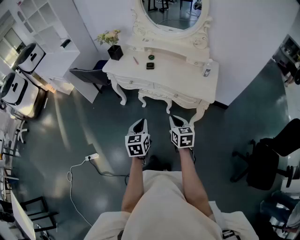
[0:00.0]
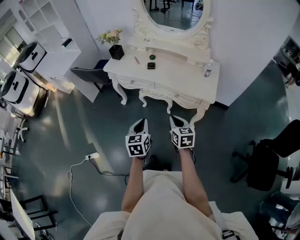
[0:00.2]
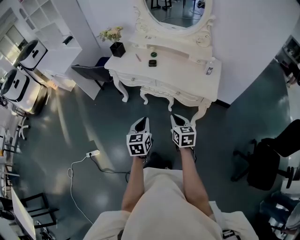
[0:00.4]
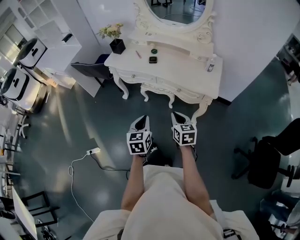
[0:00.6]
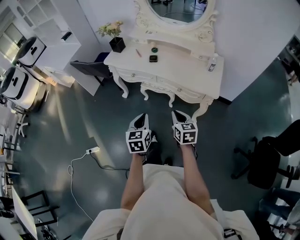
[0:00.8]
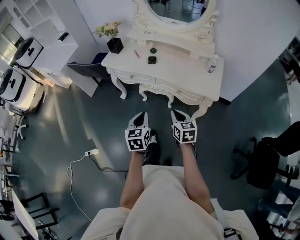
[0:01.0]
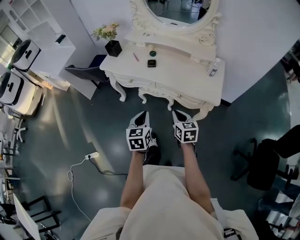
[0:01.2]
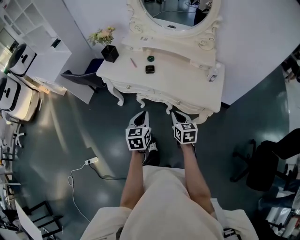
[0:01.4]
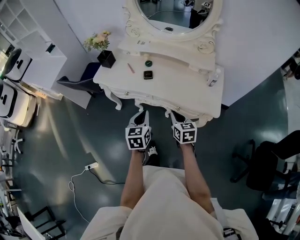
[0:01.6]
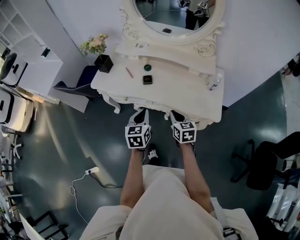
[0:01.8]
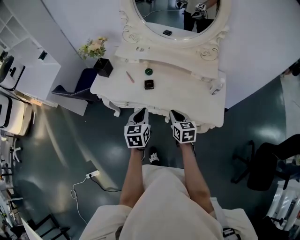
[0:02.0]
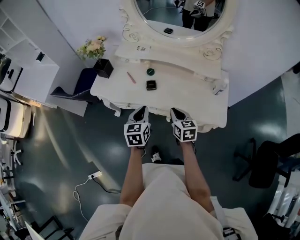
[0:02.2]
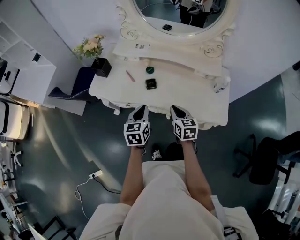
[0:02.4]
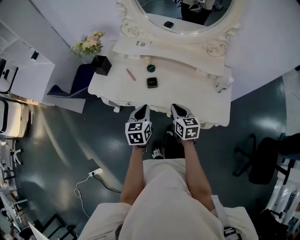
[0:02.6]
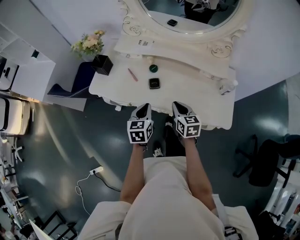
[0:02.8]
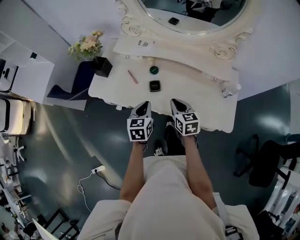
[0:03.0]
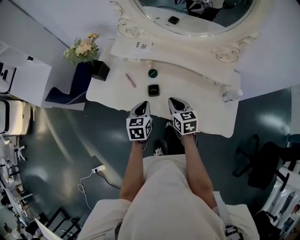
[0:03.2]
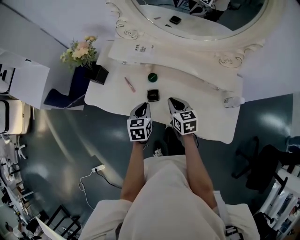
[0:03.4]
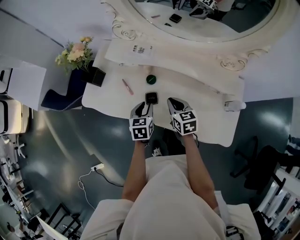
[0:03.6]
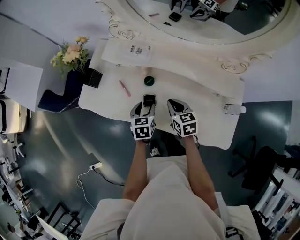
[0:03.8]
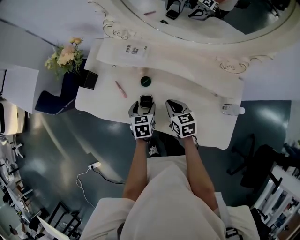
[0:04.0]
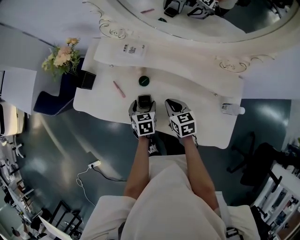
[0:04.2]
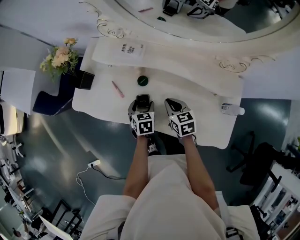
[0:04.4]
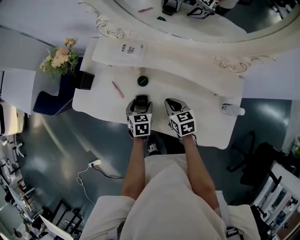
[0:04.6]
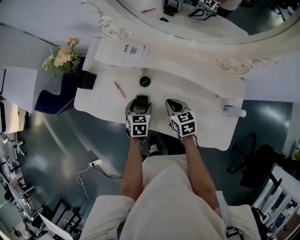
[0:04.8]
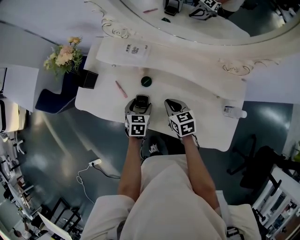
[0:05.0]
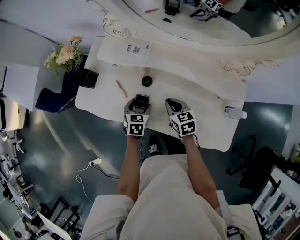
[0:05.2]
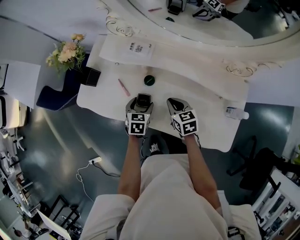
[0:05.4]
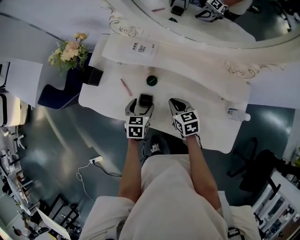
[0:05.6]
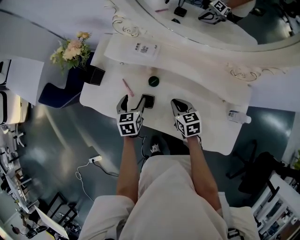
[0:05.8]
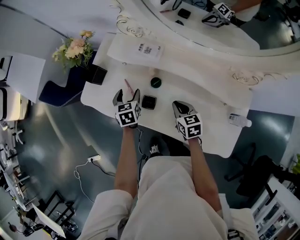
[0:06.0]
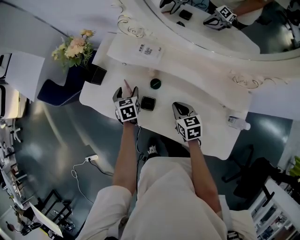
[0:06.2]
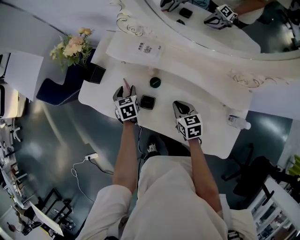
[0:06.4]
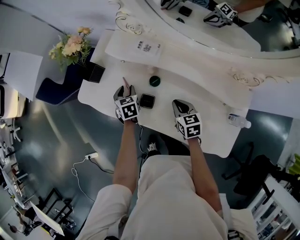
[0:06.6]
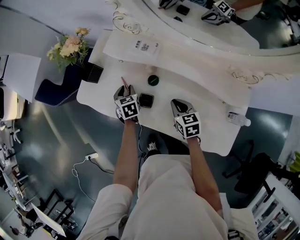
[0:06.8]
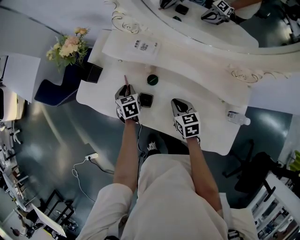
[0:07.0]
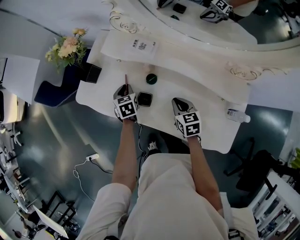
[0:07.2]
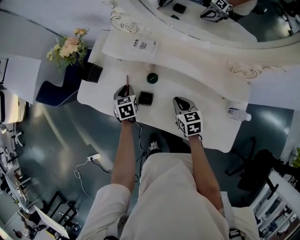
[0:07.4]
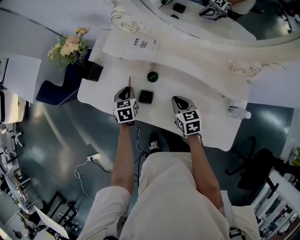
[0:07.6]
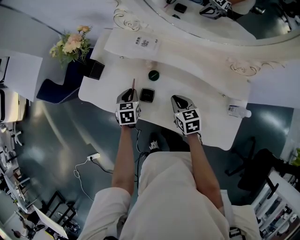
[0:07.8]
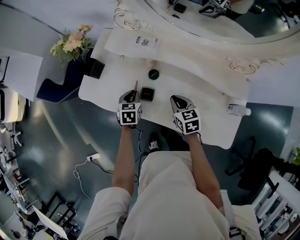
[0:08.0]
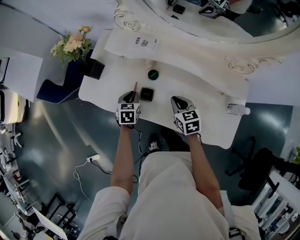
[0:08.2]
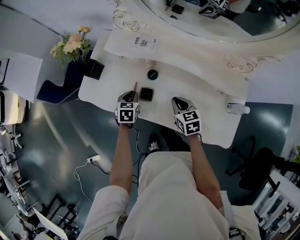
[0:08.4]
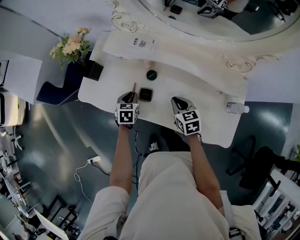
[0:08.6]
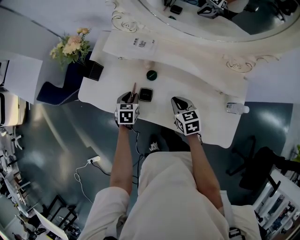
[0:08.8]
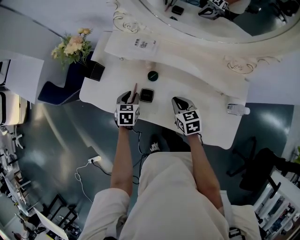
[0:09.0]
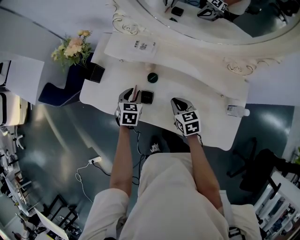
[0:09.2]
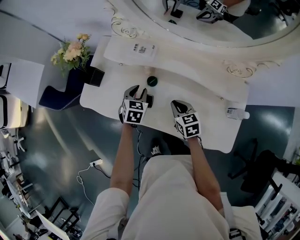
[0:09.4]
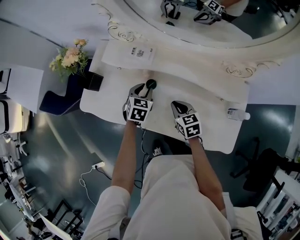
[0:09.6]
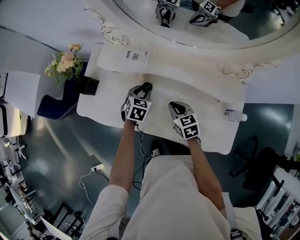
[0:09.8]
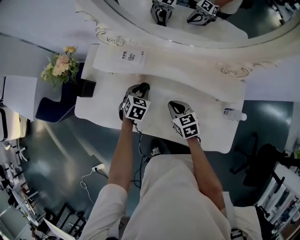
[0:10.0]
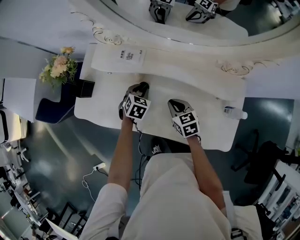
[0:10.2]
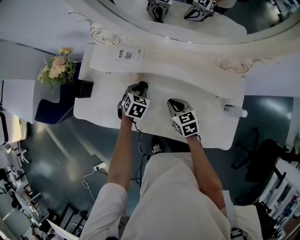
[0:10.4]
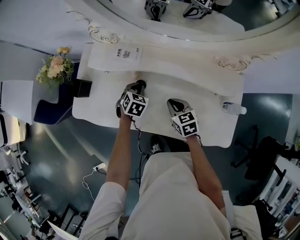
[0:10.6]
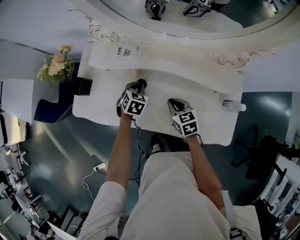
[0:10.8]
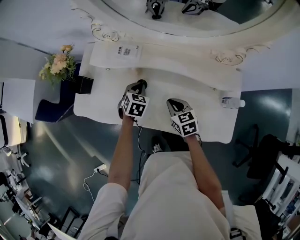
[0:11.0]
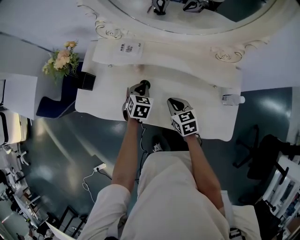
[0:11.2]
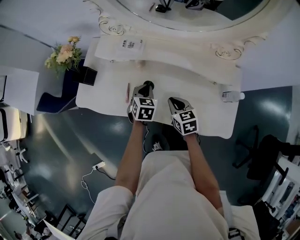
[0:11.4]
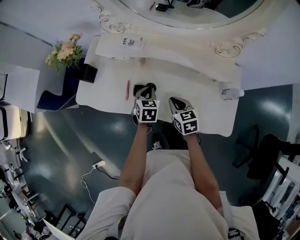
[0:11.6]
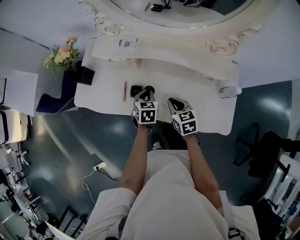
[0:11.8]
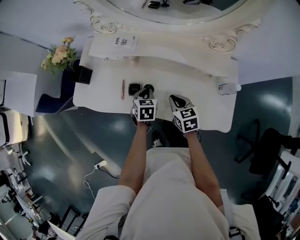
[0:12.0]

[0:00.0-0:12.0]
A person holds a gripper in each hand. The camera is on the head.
0:00.0 to 0:01.6: Both grippers move forward, some 20 cm.
0:01.6 to 0:03.0: The two grippers go roughly 20 cm forward.
0:03.0 to 0:04.4: The right gripper travels forward and downward by some 15 cm. Meanwhile the left gripper shifts about 20 cm downward, forward and to the right, turns by roughly 20 degrees, and opens its fingers.
0:04.4 to 0:06.0: The left gripper heads to the left and forward, covering approximately 15 cm.
0:06.0 to 0:07.6: The left gripper closes up.
0:07.6 to 0:09.0: The grippers make only small movements.
0:09.0 to 0:10.4: The left gripper shifts approximately 15 cm to the right and forward, and changes its angle by about 30 degrees.
0:10.4 to 0:12.0: Both grippers travel together backward, roughly 10 cm. The left gripper swivels roughly 20 degrees.

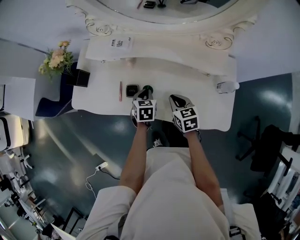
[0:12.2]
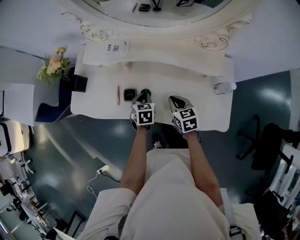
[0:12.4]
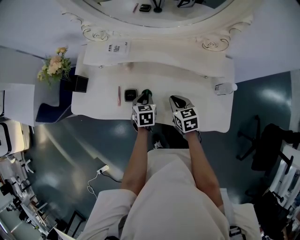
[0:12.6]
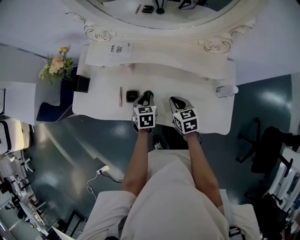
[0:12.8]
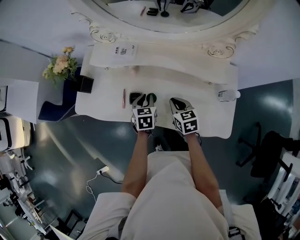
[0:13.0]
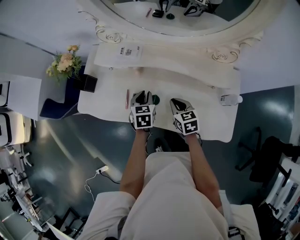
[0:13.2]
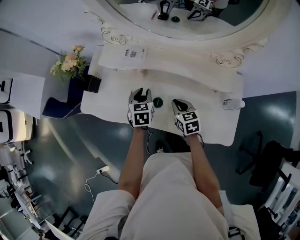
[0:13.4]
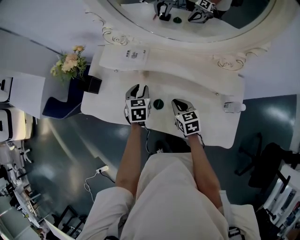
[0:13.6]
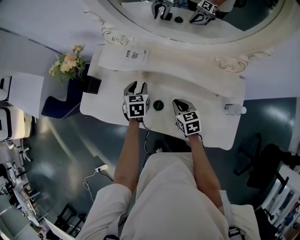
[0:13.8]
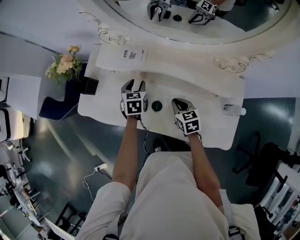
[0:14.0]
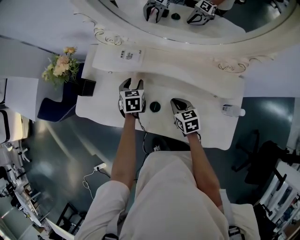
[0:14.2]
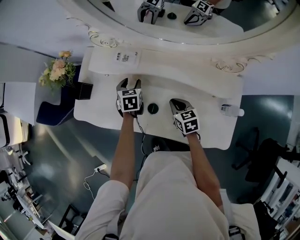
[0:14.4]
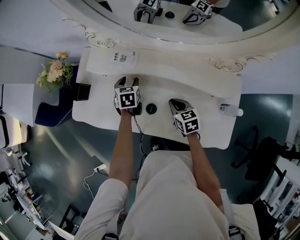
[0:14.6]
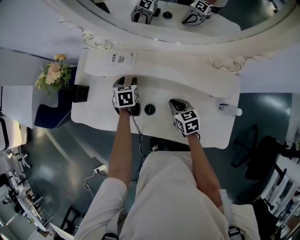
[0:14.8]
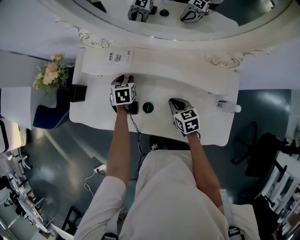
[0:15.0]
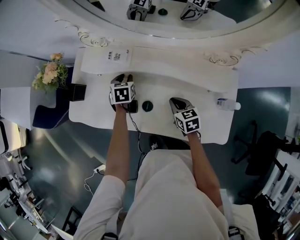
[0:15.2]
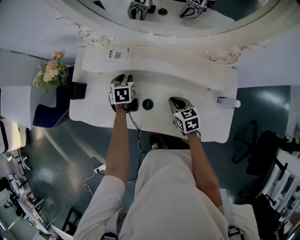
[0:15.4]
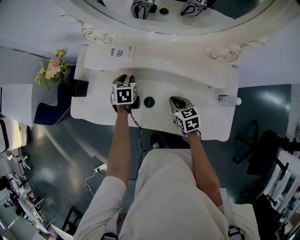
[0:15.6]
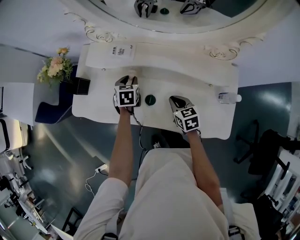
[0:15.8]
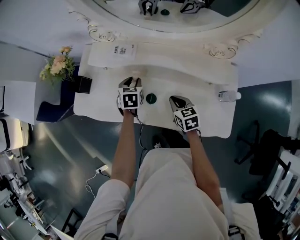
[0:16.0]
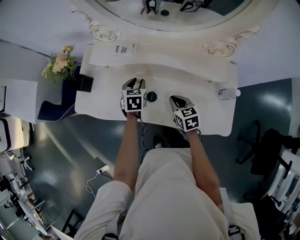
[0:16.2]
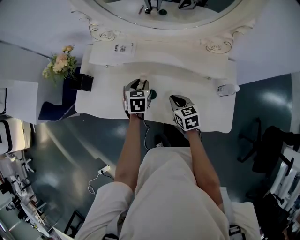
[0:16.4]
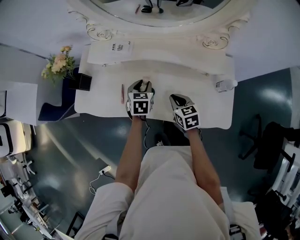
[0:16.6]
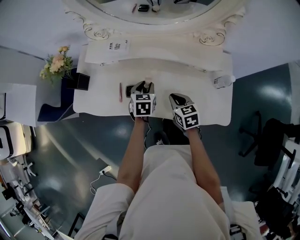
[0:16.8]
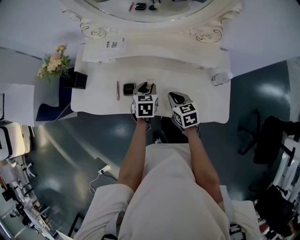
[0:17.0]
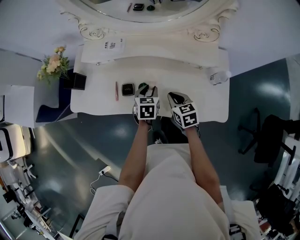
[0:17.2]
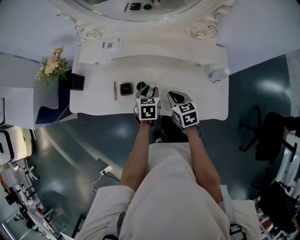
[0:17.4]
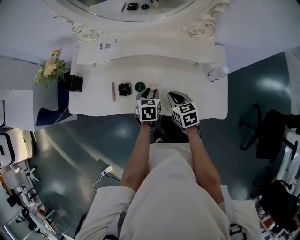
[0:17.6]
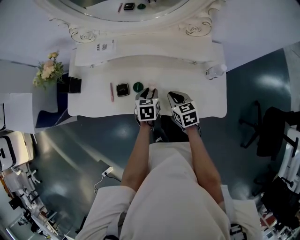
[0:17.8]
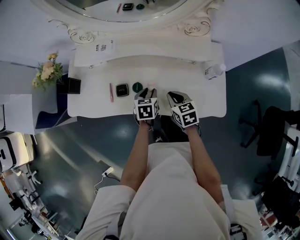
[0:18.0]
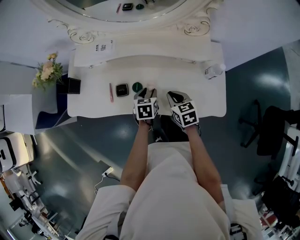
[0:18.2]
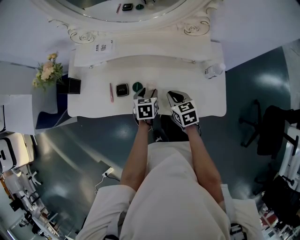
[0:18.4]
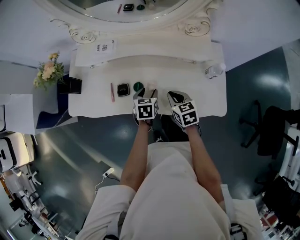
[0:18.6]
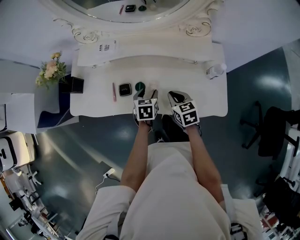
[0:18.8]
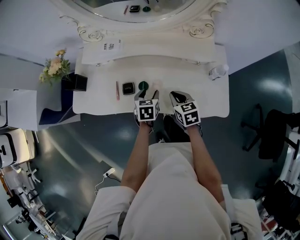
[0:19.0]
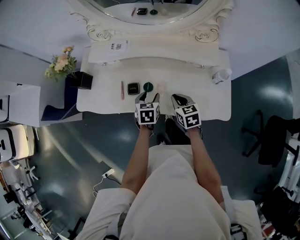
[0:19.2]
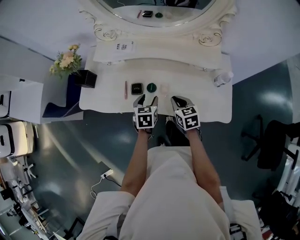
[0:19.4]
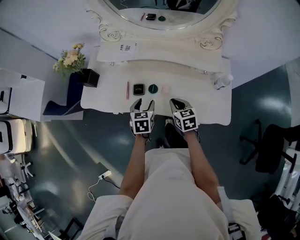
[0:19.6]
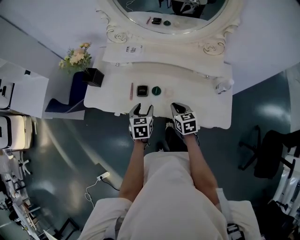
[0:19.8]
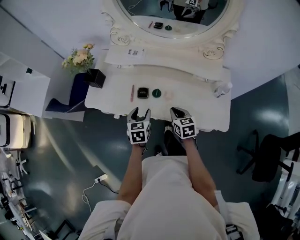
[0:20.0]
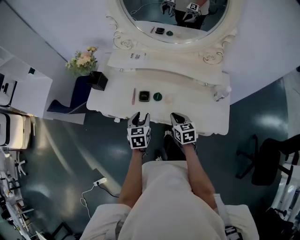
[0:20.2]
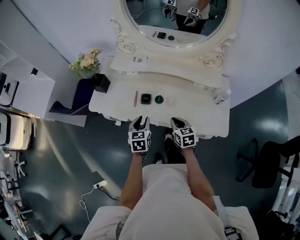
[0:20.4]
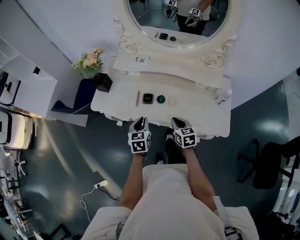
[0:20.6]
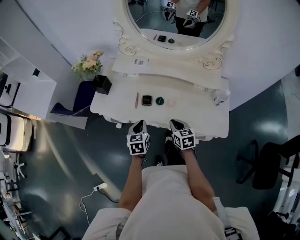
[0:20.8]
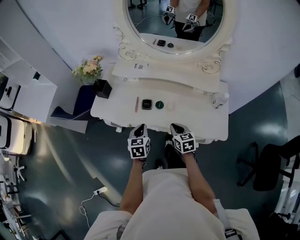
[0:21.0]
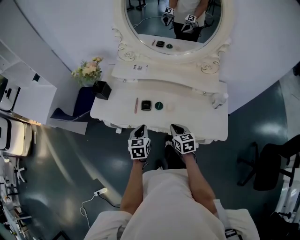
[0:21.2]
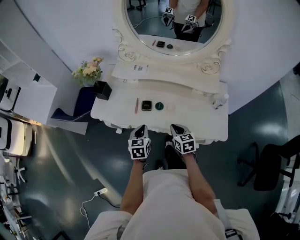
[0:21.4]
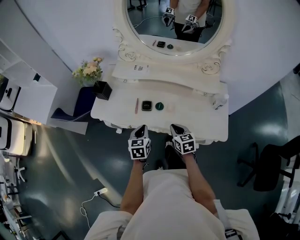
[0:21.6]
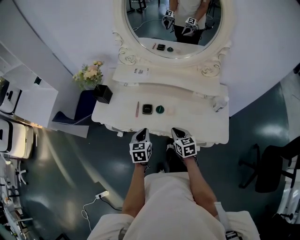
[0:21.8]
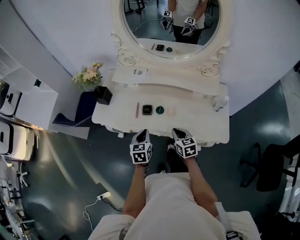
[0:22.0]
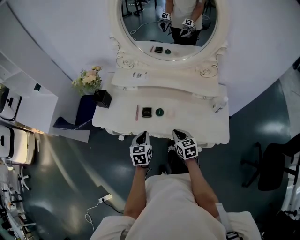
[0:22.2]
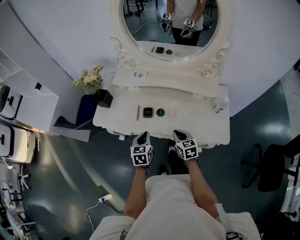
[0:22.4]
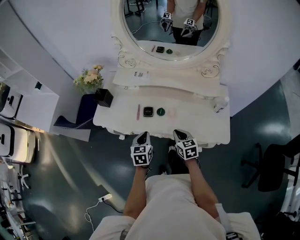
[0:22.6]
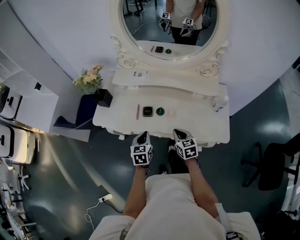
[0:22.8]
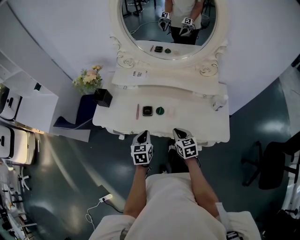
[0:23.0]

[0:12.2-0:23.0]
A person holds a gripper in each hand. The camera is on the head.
0:12.2 to 0:13.8: The right gripper is displaced forward by about 5 cm; the left gripper shifts approximately 15 cm forward, to the left and upward, and opens up.
0:13.8 to 0:15.2: The left gripper shifts approximately 5 cm forward.
0:15.2 to 0:16.8: The right gripper moves backward, approximately 10 cm, while the left gripper is displaced backward and to the right by about 20 cm.
0:16.8 to 0:18.4: The left gripper goes some 10 cm to the right and backward.
0:18.4 to 0:20.0: The right gripper moves to the left, approximately 10 cm. The left gripper moves to the left, upward and backward, roughly 20 cm.
0:20.0 to 0:21.4: The left gripper closes.
0:21.4 to 0:23.0: Neither gripper changes place.

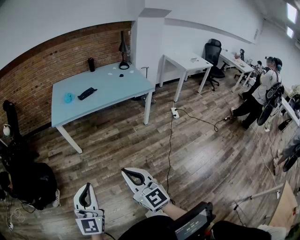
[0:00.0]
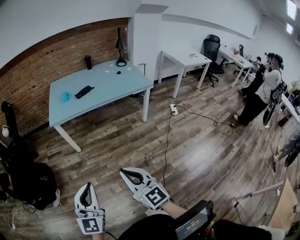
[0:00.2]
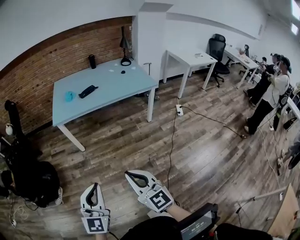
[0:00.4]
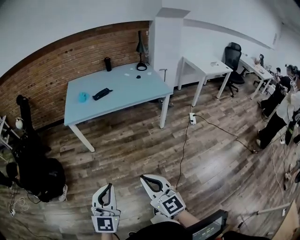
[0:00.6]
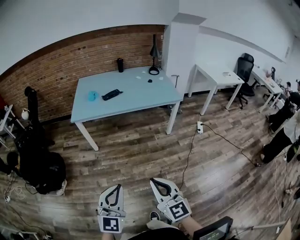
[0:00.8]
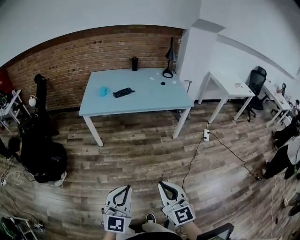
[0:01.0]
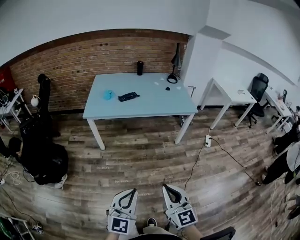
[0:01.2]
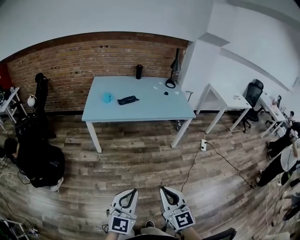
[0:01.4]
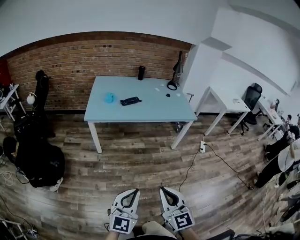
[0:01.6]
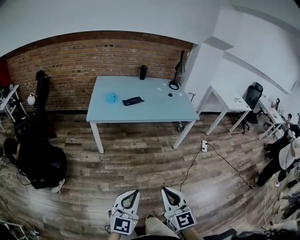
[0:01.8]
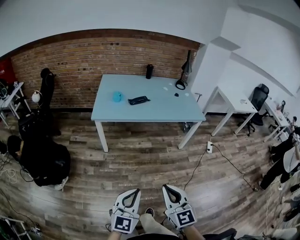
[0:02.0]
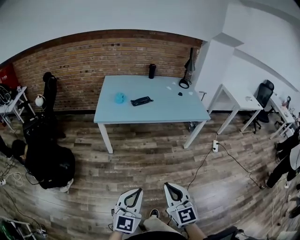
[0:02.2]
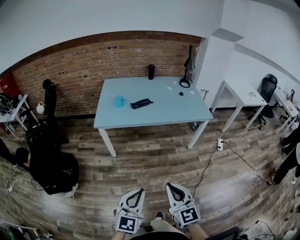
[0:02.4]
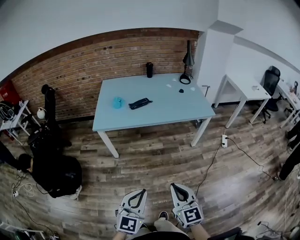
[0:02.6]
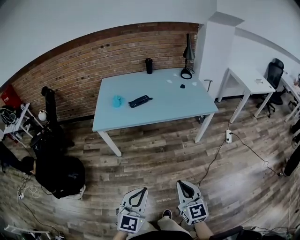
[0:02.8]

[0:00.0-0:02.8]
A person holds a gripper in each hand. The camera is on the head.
0:00.0 to 0:01.4: The left gripper goes about 10 cm to the right, forward and downward, while the right gripper is displaced forward by about 5 cm.
0:01.4 to 0:02.8: The right gripper travels forward and downward by roughly 15 cm. The left gripper heads forward, covering about 15 cm.
